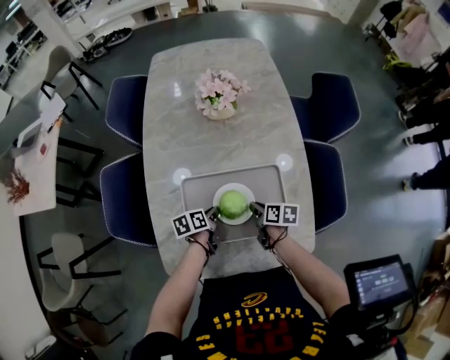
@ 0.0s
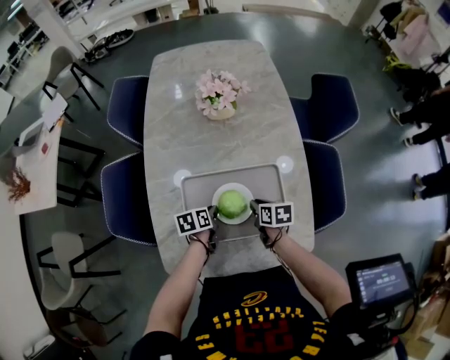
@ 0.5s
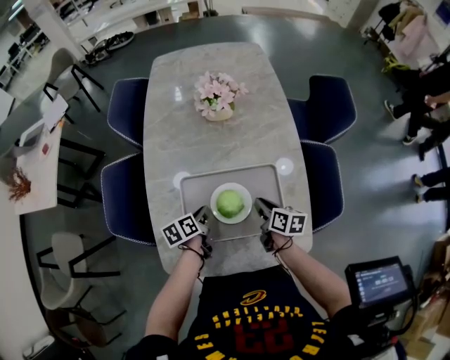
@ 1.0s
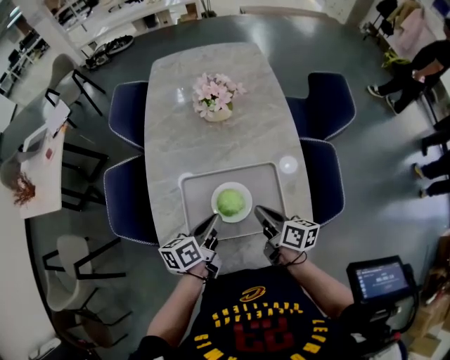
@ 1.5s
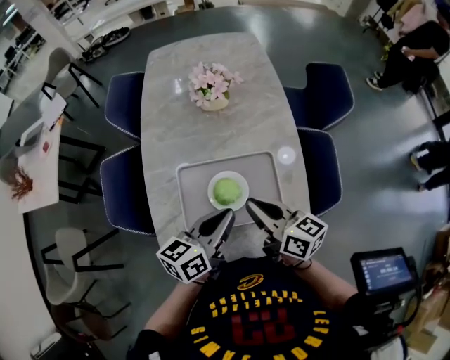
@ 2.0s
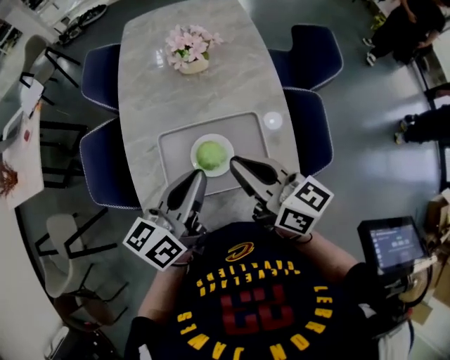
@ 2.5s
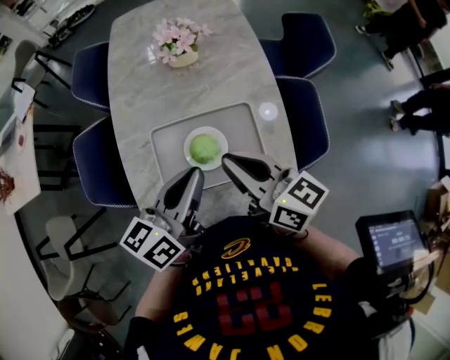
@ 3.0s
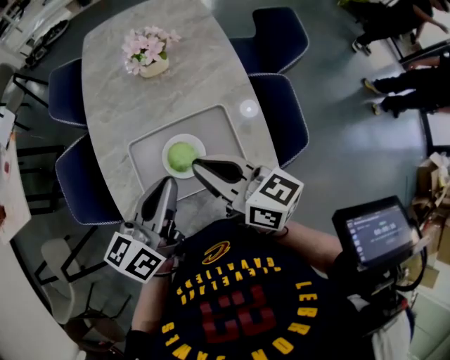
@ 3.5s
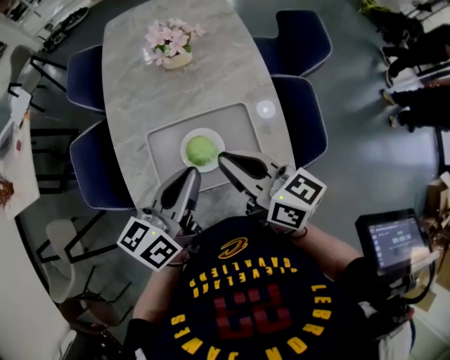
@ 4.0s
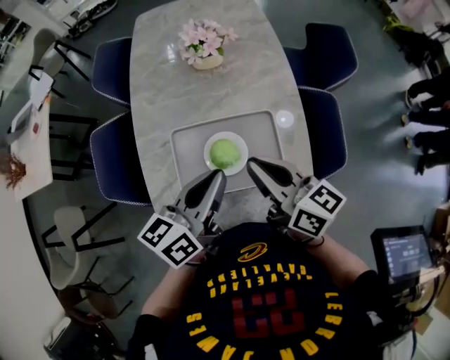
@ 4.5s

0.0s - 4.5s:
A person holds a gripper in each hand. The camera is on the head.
0.0s - 2.0s: The right gripper goes some 25 cm upward, and points its fingers roughly 30 degrees further upward.

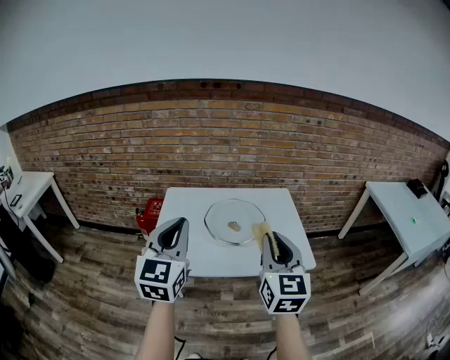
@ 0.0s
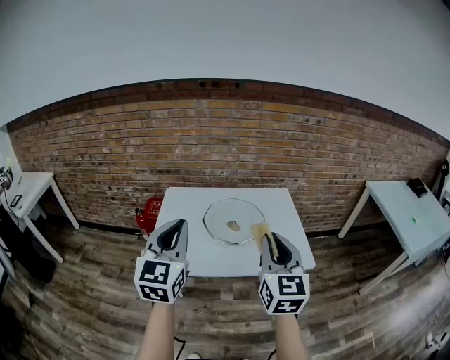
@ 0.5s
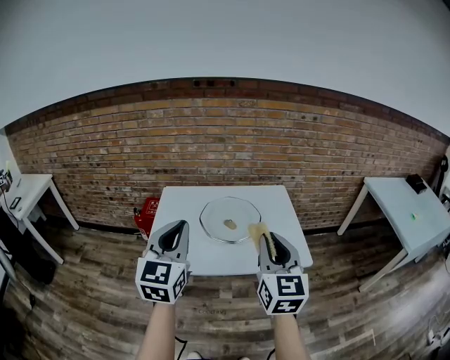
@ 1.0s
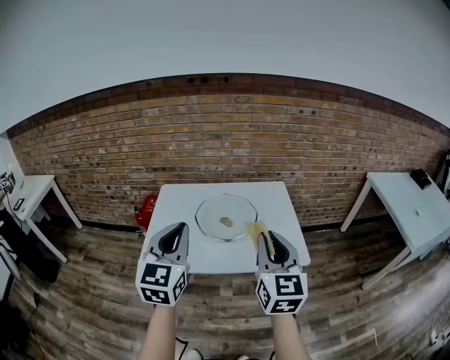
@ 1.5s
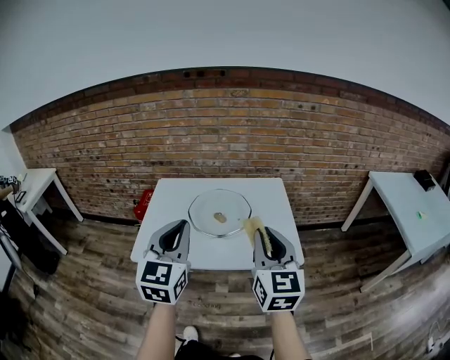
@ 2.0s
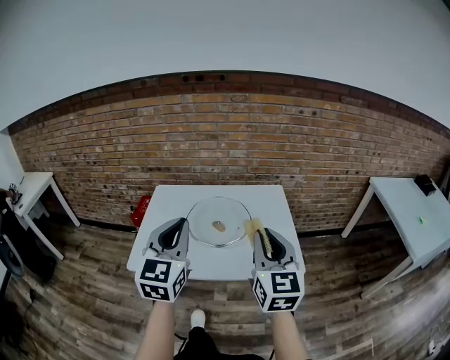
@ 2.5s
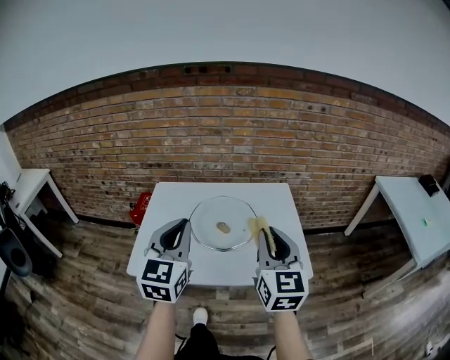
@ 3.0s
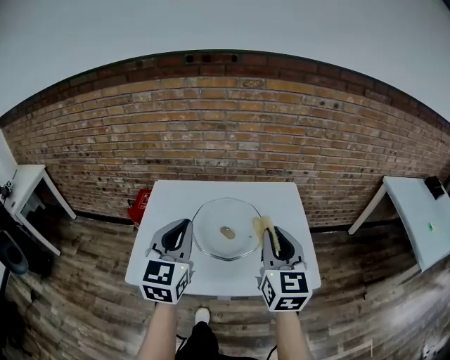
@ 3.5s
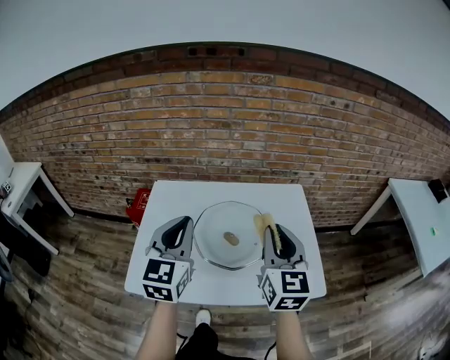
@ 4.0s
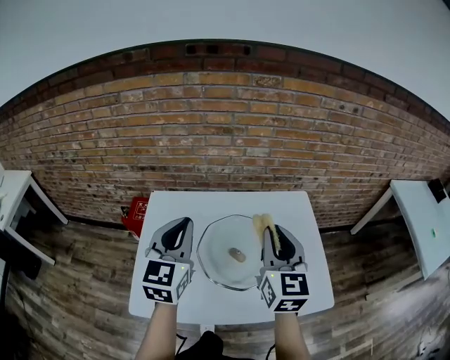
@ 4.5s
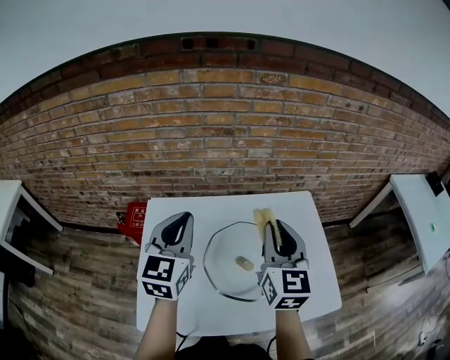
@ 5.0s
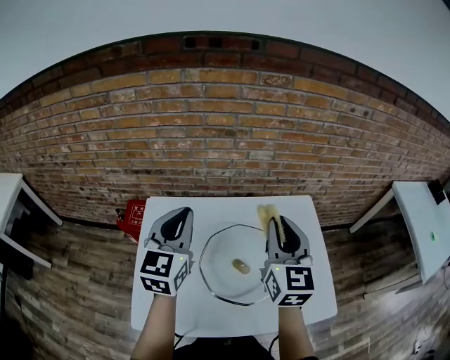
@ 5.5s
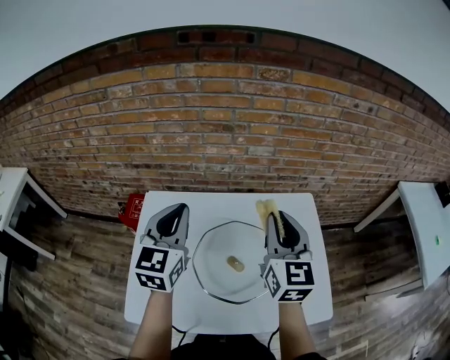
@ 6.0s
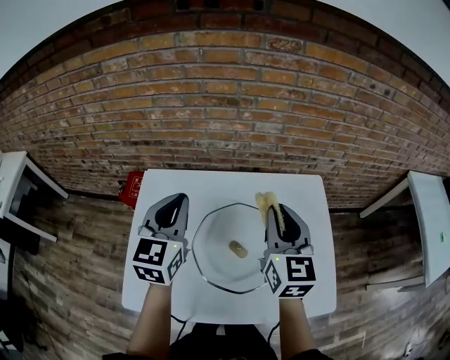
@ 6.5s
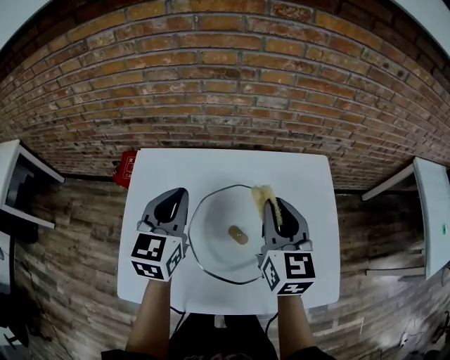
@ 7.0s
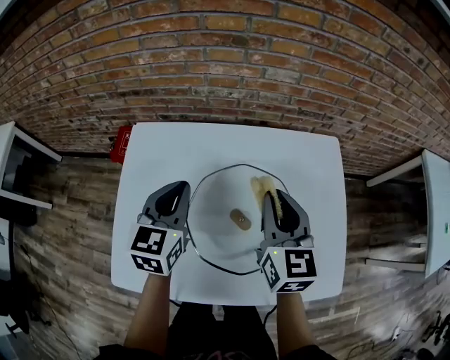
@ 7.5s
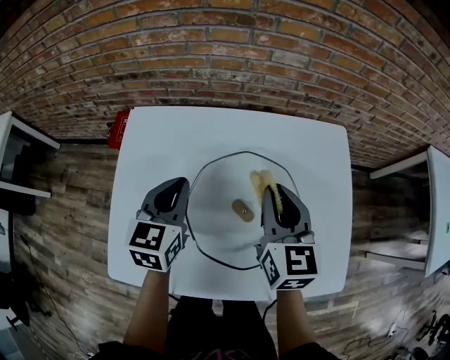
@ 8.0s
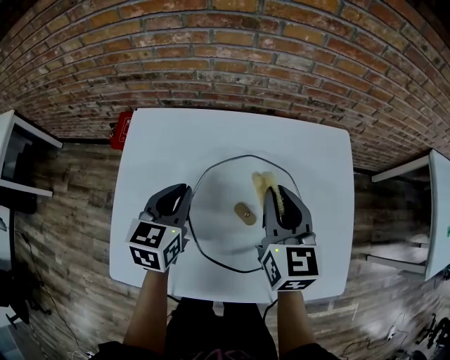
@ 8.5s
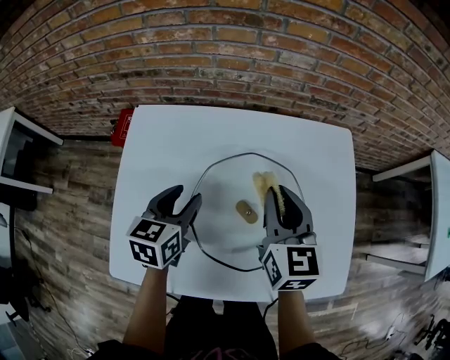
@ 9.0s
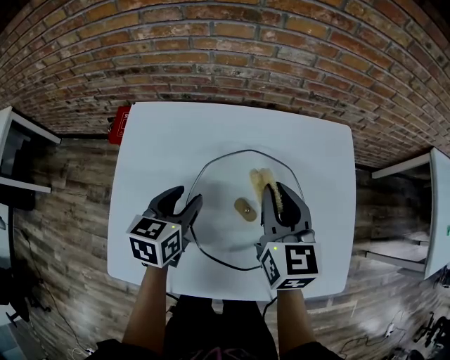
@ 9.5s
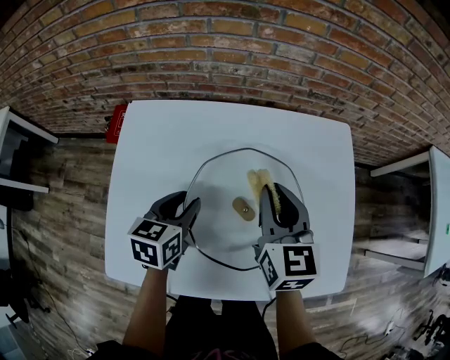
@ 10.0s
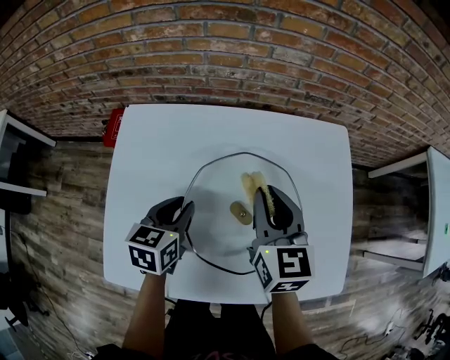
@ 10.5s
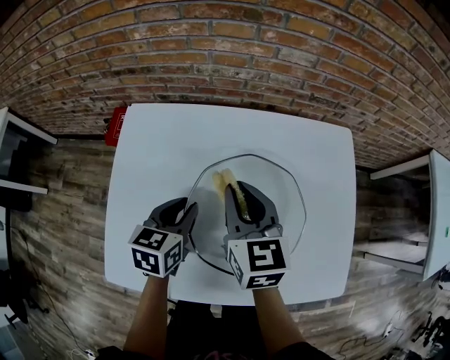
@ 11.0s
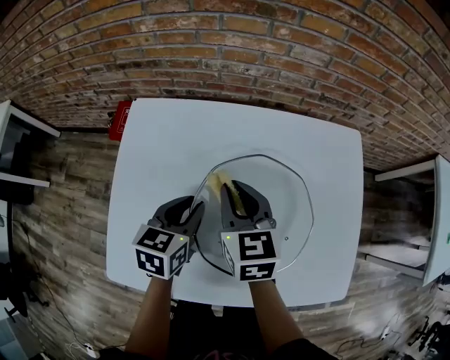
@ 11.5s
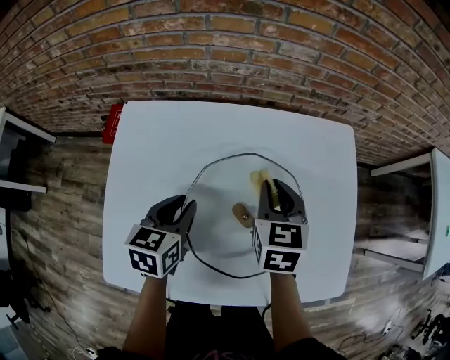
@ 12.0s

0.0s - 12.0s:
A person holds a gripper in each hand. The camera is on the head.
0.0s - 2.0s: Both grippers travel together to the right, roughly 10 cm.
2.0s - 4.0s: Both grippers move forward, approximately 20 cm.
4.0s - 6.0s: Both grippers travel together forward, some 20 cm.
6.0s - 8.0s: The two grippers go about 20 cm downward. The left gripper swivels some 20 degrees.
8.0s - 10.0s: The left gripper shifts roughly 10 cm downward, and opens its fingers.
10.0s - 12.0s: The right gripper shifts some 5 cm downward, and goes to the left and returns, about 10 cm each way.

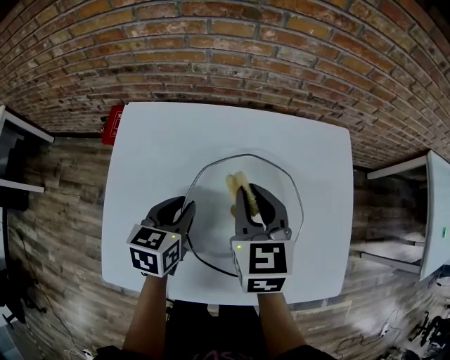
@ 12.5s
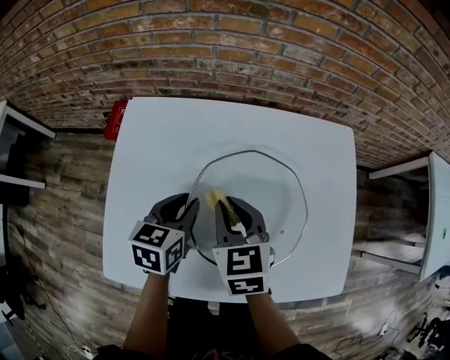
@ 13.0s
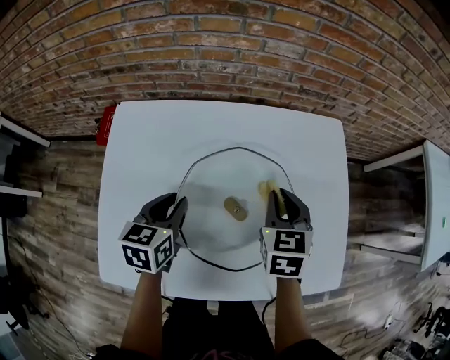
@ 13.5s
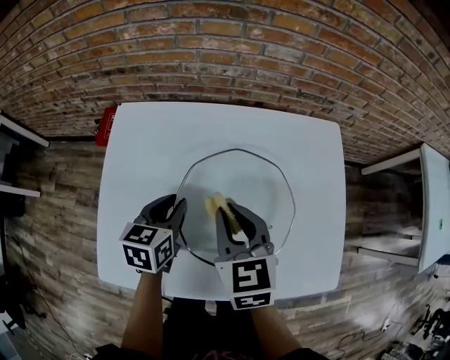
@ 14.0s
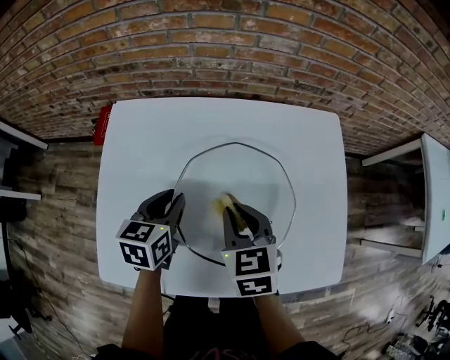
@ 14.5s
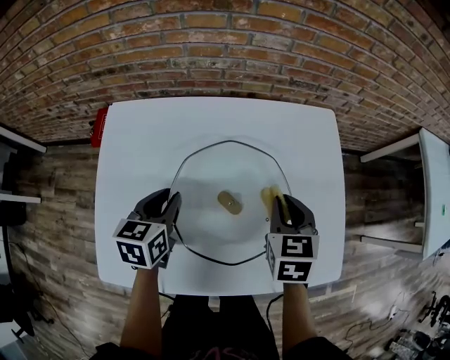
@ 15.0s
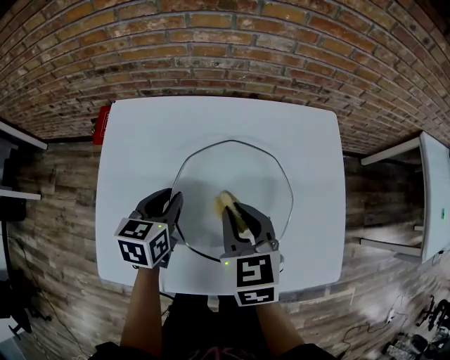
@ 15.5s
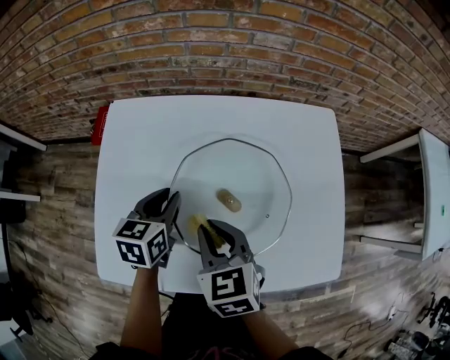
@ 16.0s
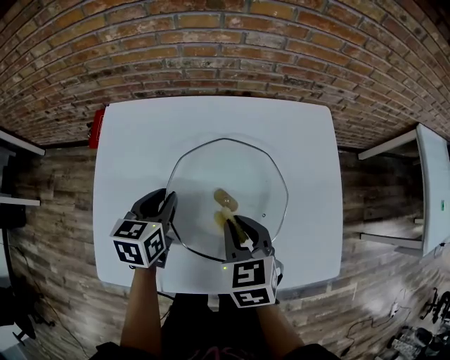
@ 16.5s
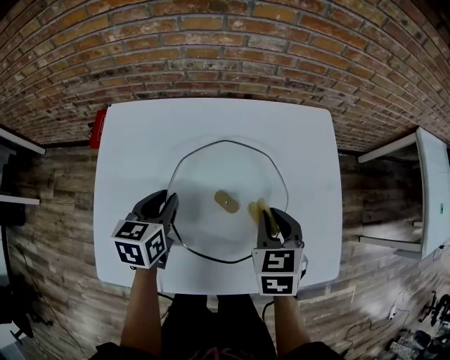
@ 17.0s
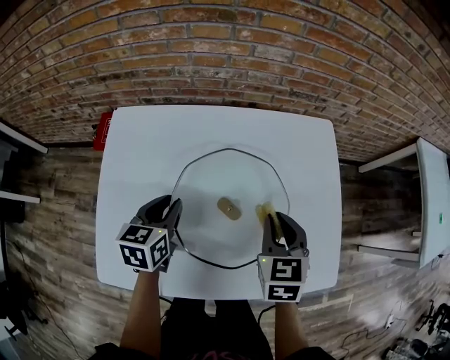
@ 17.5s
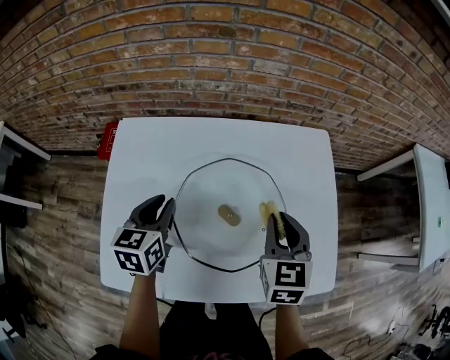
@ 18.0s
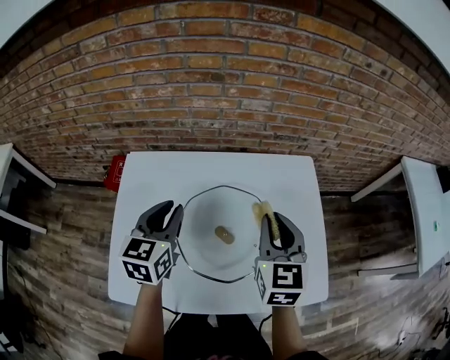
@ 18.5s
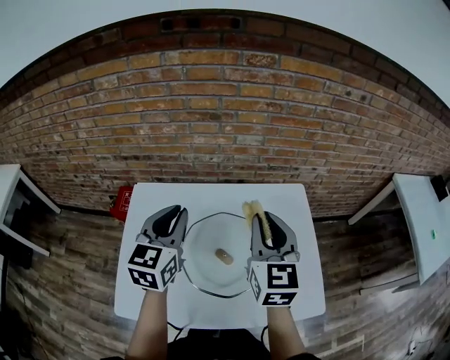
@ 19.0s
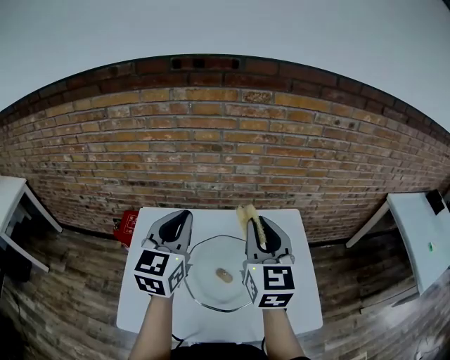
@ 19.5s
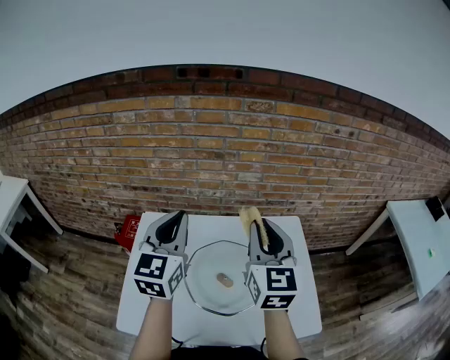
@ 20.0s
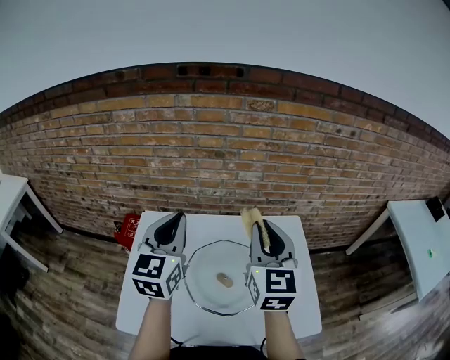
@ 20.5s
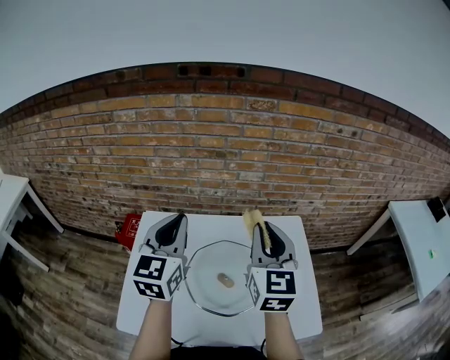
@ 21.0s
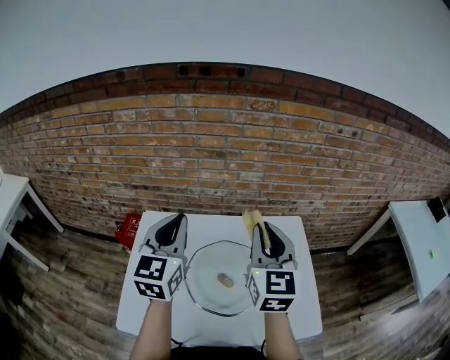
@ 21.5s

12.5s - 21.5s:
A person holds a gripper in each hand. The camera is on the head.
12.5s - 14.5s: The right gripper moves left and right over roughly 15 cm, changing direction 2 times.
14.5s - 17.0s: The right gripper moves left and right over some 15 cm, changing direction 2 times.
17.0s - 19.5s: The two grippers go approximately 30 cm upward. The right gripper angles its fingers upward, by some 40 degrees. The left gripper tilts its fingers about 30 degrees upward.
19.5s - 21.5s: The grippers make only small movements.

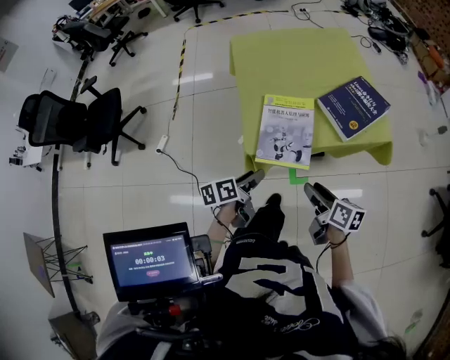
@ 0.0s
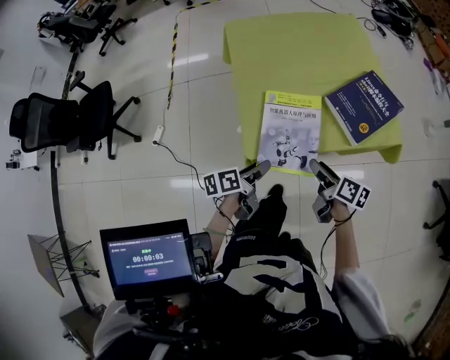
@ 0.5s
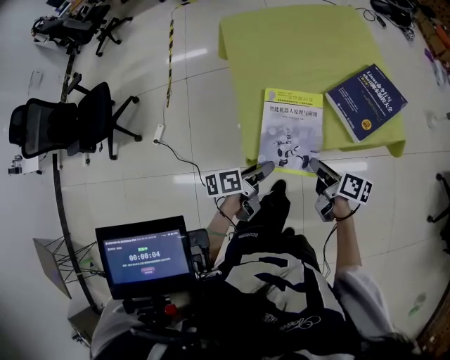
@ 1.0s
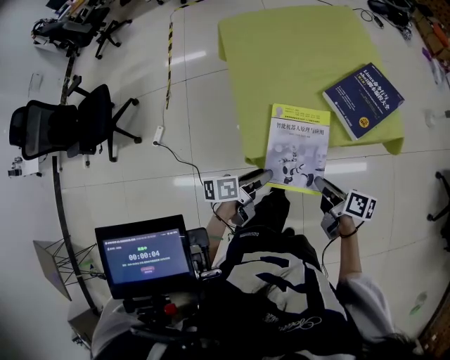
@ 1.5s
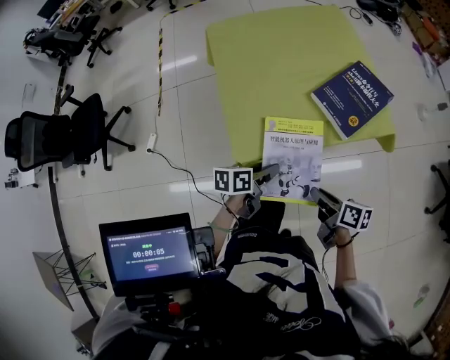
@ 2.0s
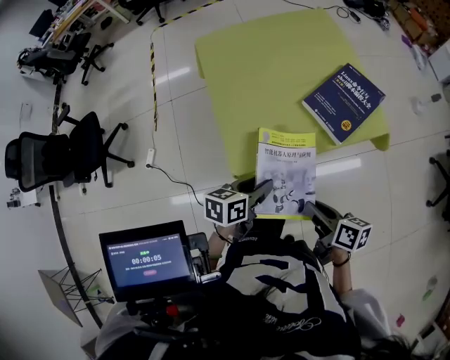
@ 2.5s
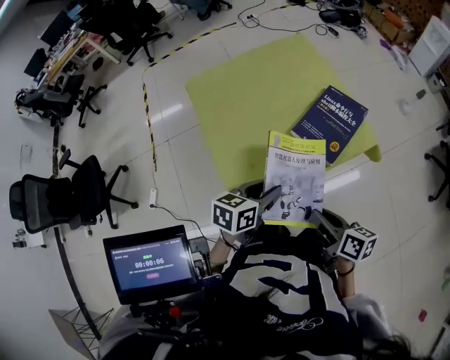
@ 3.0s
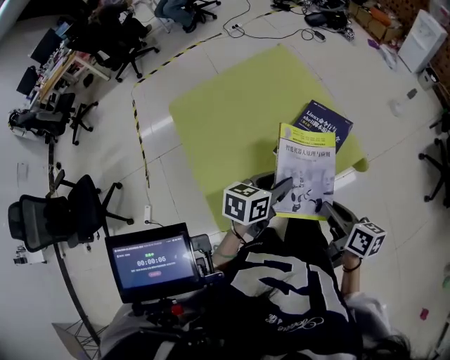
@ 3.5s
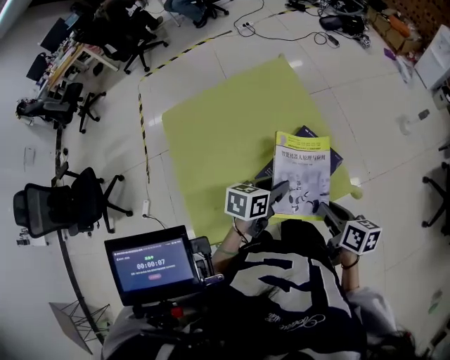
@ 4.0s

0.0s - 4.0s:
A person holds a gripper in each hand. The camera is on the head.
0.0s - 2.0s: The left gripper shifts about 10 cm forward and to the right, and turns by about 20 degrees; the right gripper reaches approximately 10 cm forward, then returns, and closes.
2.0s - 4.0s: The two grippers go roughly 30 cm forward and to the right. The left gripper changes its angle by approximately 20 degrees.
